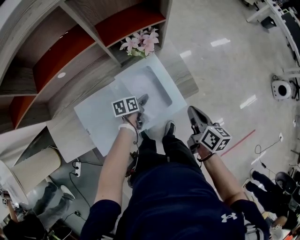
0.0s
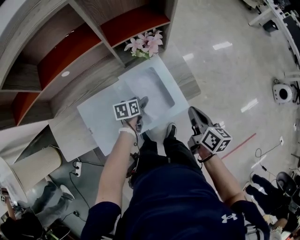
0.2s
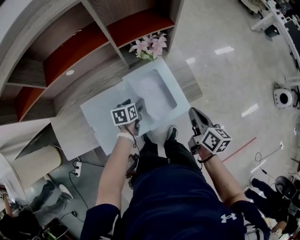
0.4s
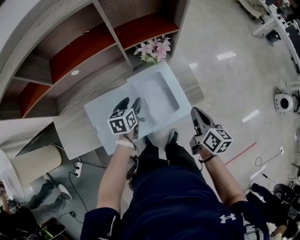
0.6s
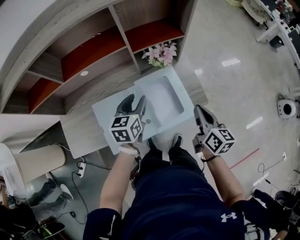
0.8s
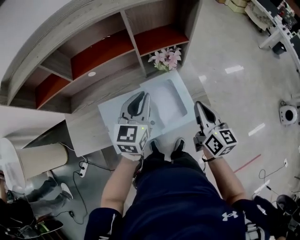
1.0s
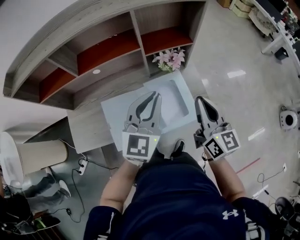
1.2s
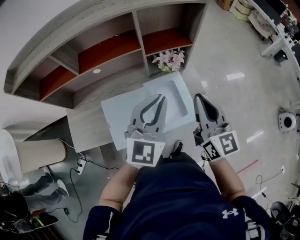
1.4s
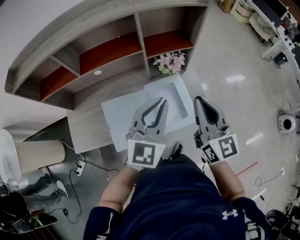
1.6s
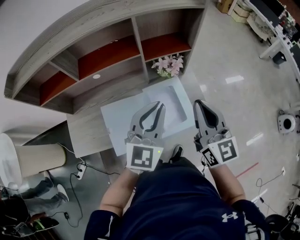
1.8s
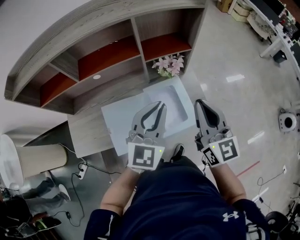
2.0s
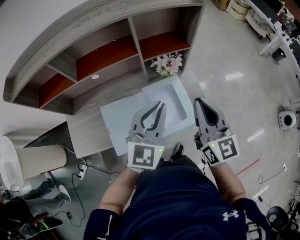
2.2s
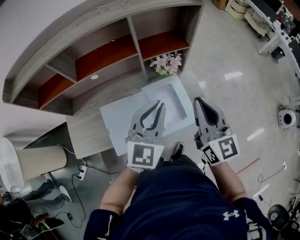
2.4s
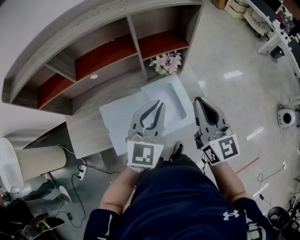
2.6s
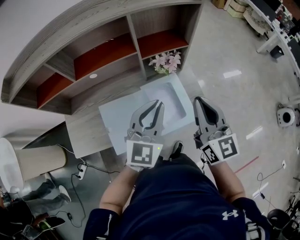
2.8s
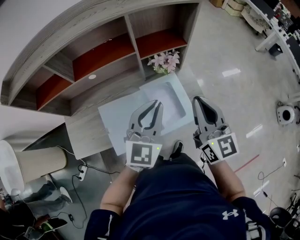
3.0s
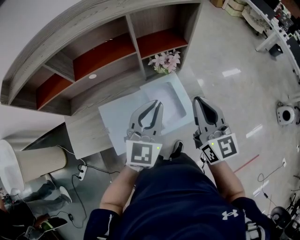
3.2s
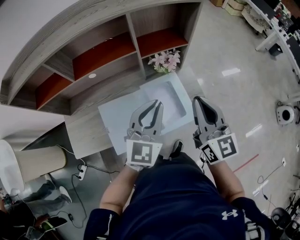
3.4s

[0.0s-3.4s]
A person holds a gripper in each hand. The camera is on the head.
0.0s to 1.6s: The right gripper travels upward and to the left by some 25 cm, and rotates approximately 50 degrees. Meanwhile the left gripper shifts roughly 40 cm upward, tips its fingers upward by roughly 40 degrees, and closes.
1.6s to 3.4s: There are only small adjustments of the grippers.

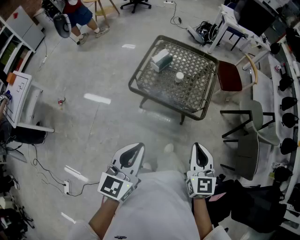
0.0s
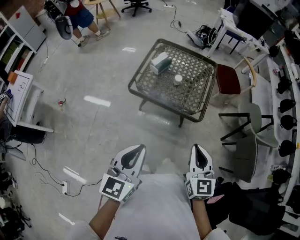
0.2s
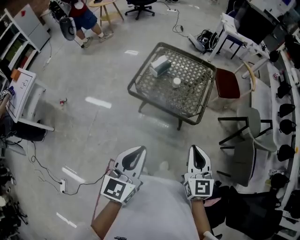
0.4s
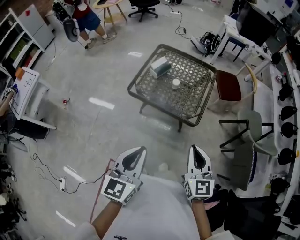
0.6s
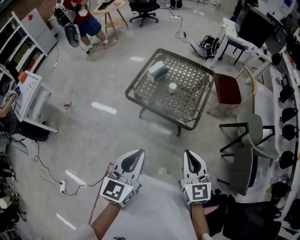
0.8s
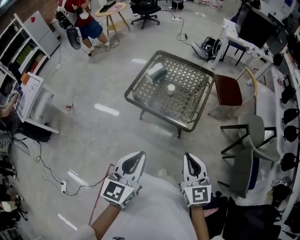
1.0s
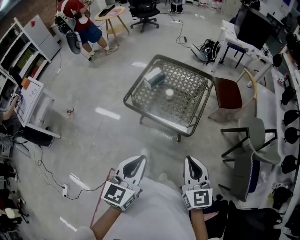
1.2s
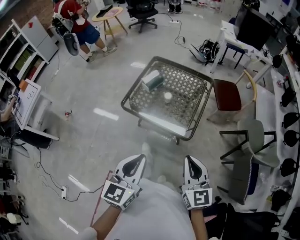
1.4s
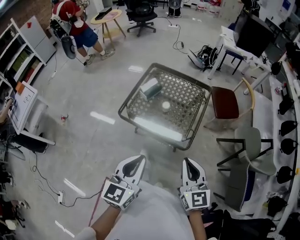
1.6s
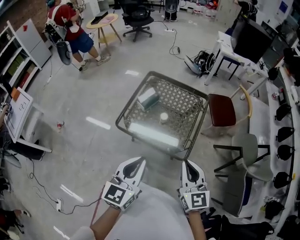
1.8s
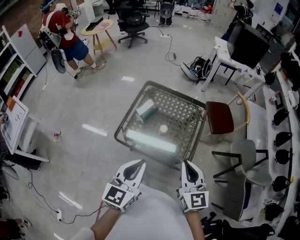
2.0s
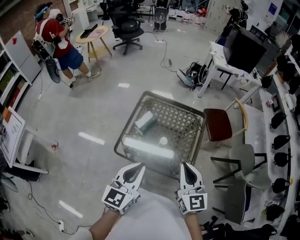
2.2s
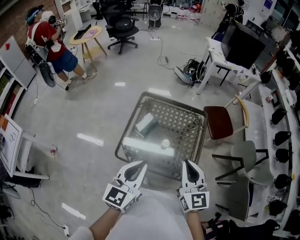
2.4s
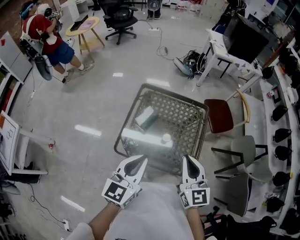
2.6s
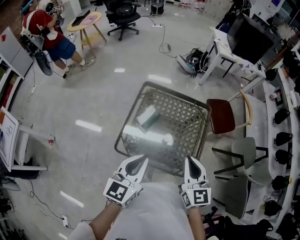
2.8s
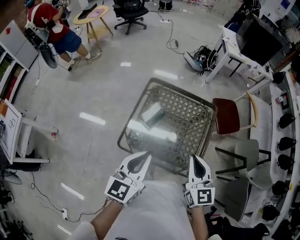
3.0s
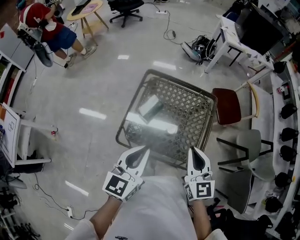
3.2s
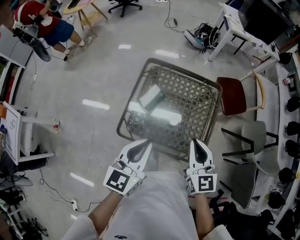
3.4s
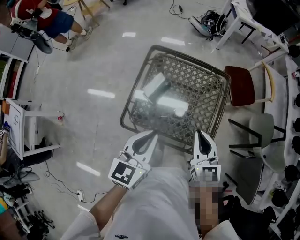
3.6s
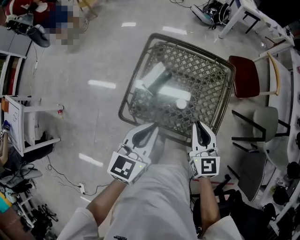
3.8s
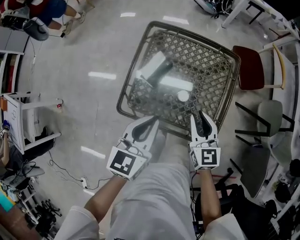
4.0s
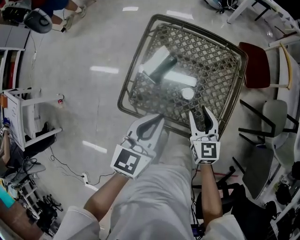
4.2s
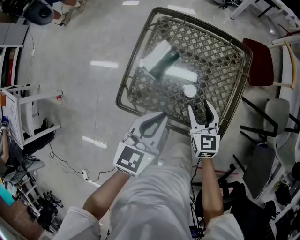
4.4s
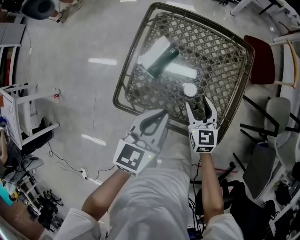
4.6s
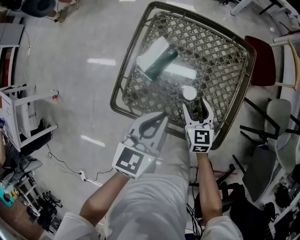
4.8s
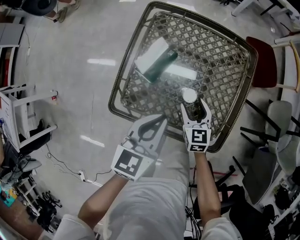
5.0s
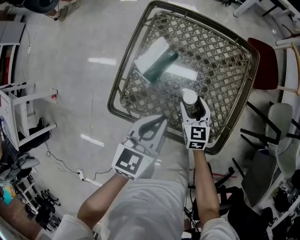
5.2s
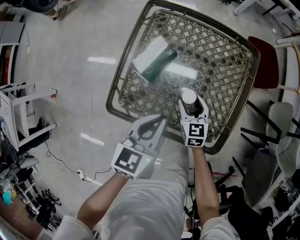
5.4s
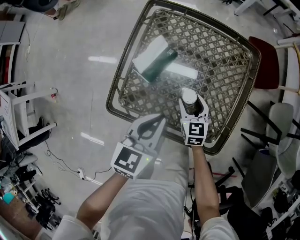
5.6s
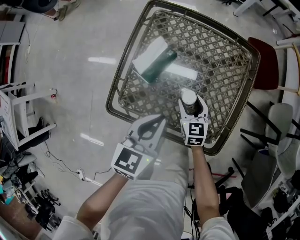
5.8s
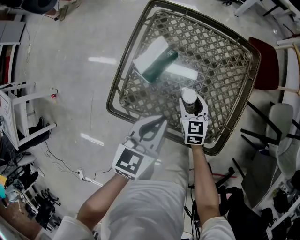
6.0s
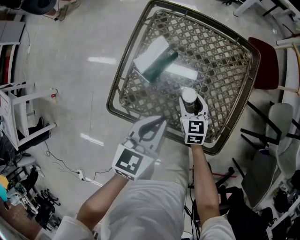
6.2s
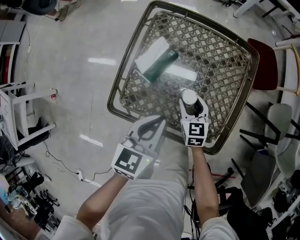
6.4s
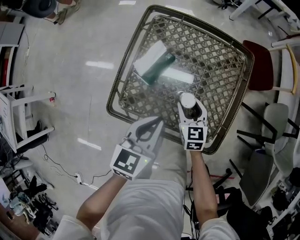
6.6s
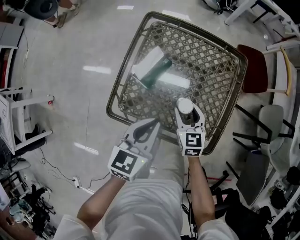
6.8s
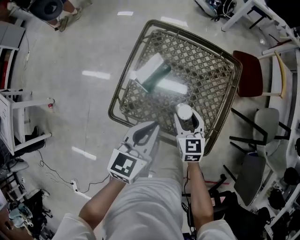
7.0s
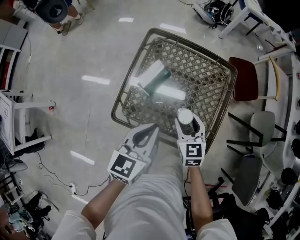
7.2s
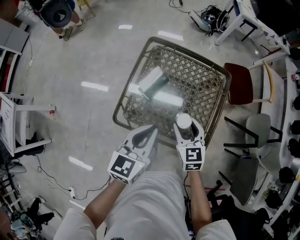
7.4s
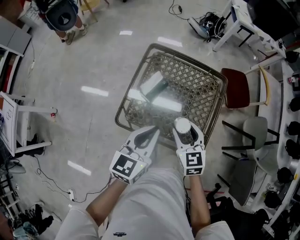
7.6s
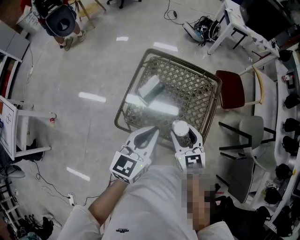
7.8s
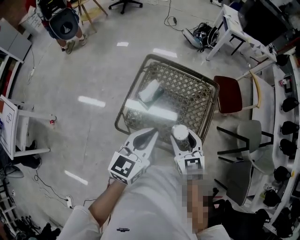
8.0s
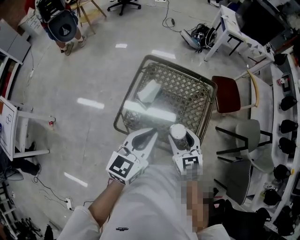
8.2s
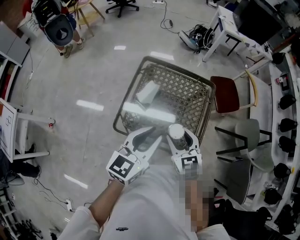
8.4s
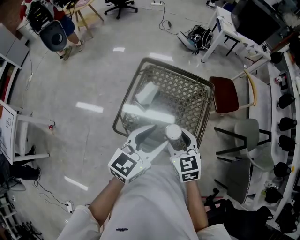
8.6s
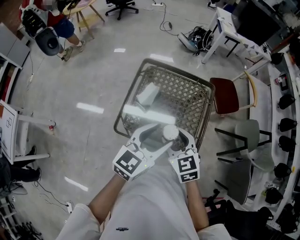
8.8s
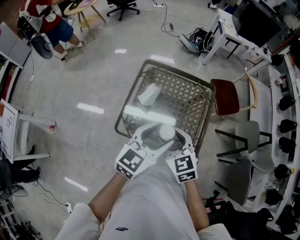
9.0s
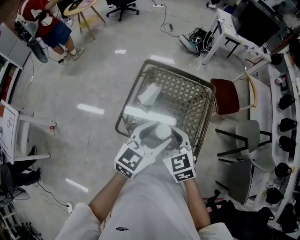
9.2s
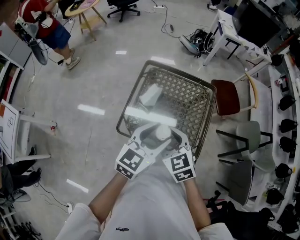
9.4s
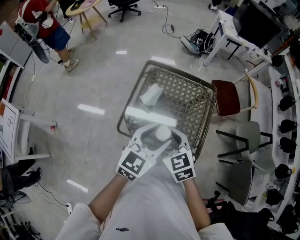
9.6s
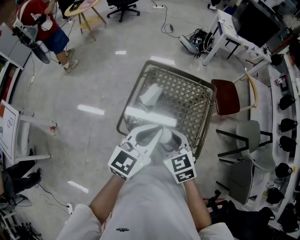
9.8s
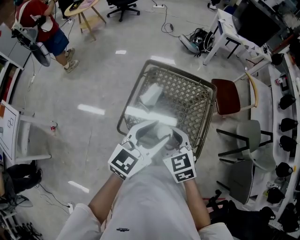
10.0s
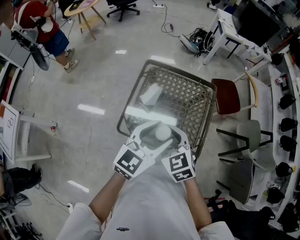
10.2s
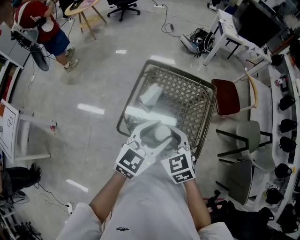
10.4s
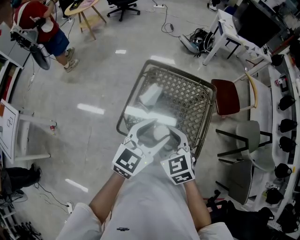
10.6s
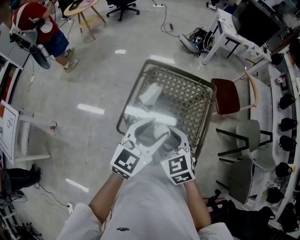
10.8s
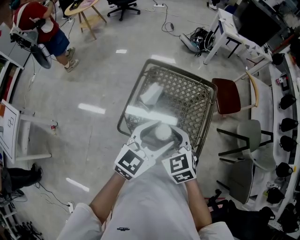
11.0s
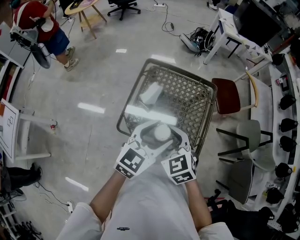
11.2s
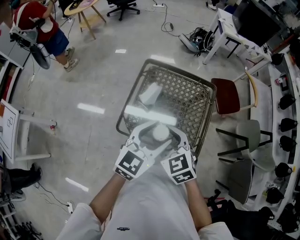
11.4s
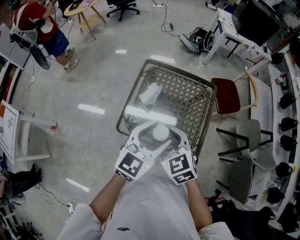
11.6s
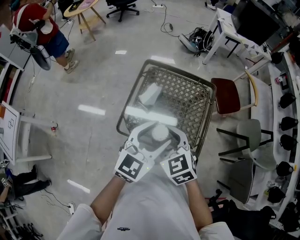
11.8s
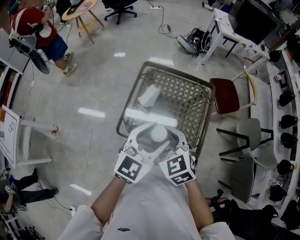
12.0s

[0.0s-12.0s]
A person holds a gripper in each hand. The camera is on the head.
0.0s to 1.6s: Both grippers travel together to the right and forward, some 15 cm.
1.6s to 3.0s: Both grippers move forward and to the left, about 30 cm.
3.0s to 4.4s: Both grippers travel together downward, some 25 cm. The right gripper opens.
4.4s to 6.0s: The right gripper heads downward, covering roughly 15 cm; the left gripper is displaced downward by about 10 cm.
6.0s to 7.6s: Both grippers move upward, approximately 20 cm.
7.6s to 9.0s: The right gripper is displaced upward and backward by about 10 cm. Meanwhile the left gripper heads upward, covering some 5 cm, and opens.
9.0s to 10.4s: The left gripper closes, then opens again.
10.4s to 12.0s: The grippers move only a little.

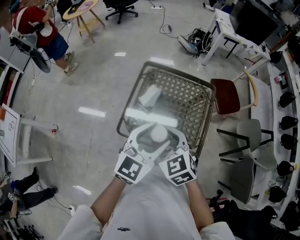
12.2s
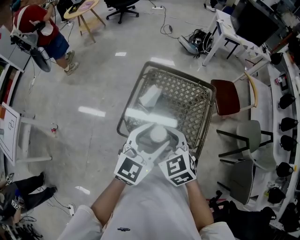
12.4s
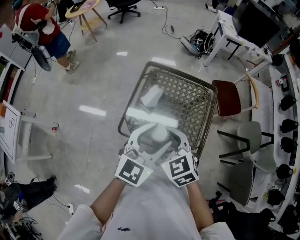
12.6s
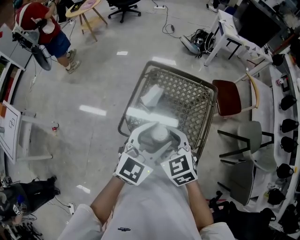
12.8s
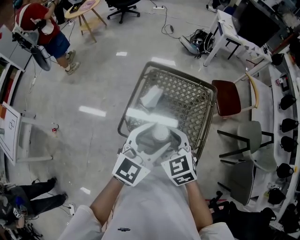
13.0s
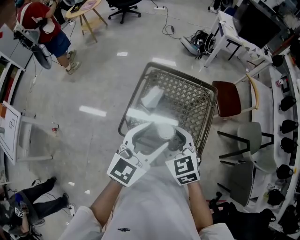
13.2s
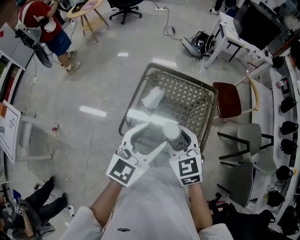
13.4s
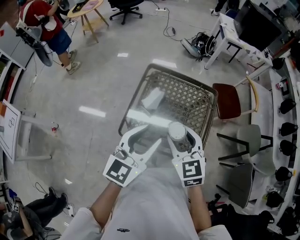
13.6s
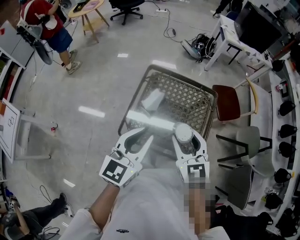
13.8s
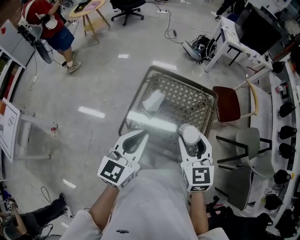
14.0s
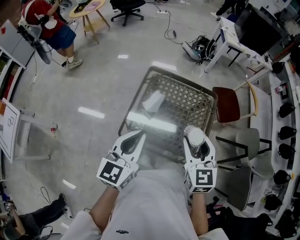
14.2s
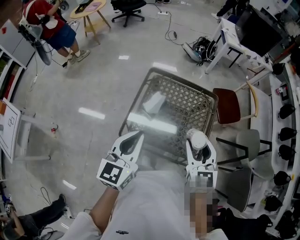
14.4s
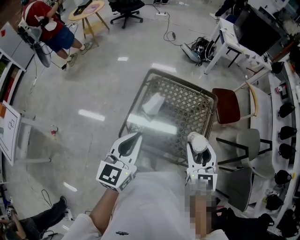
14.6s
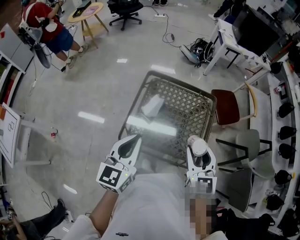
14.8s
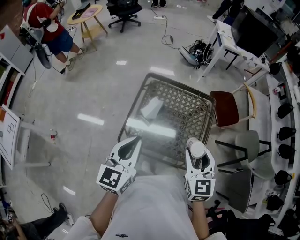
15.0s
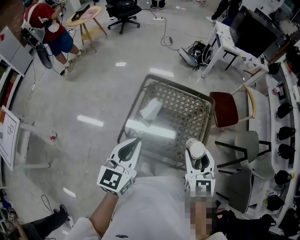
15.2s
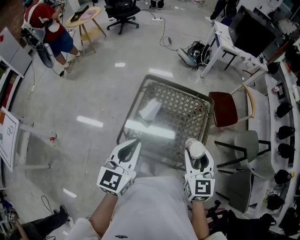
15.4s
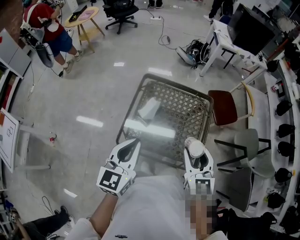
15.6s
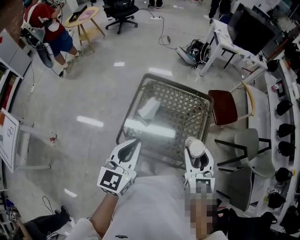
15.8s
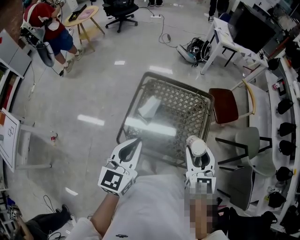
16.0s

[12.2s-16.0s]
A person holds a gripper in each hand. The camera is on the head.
12.2s to 13.4s: The grippers make only small movements.
13.4s to 14.8s: The right gripper heads to the right, covering roughly 10 cm, and turns by approximately 20 degrees. Meanwhile the left gripper shifts some 5 cm to the left, and closes up.
14.8s to 16.0s: There are only small adjustments of the grippers.

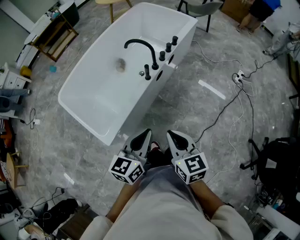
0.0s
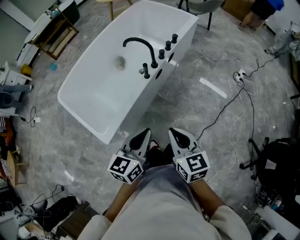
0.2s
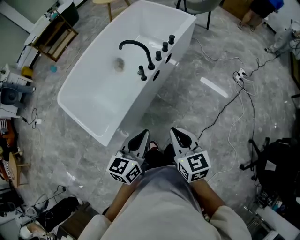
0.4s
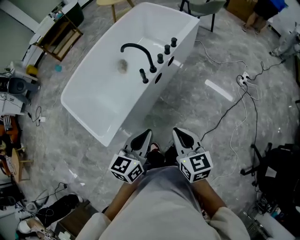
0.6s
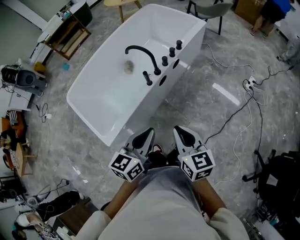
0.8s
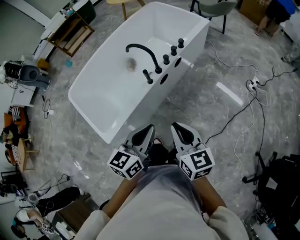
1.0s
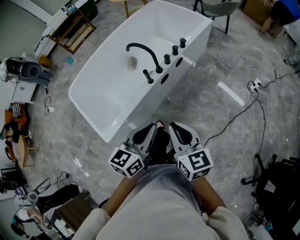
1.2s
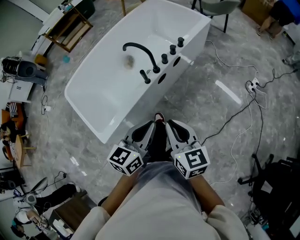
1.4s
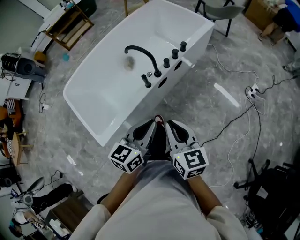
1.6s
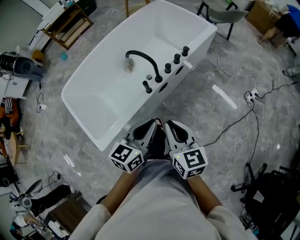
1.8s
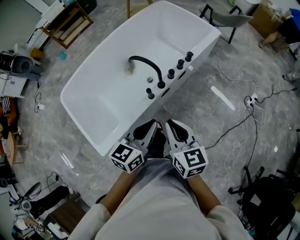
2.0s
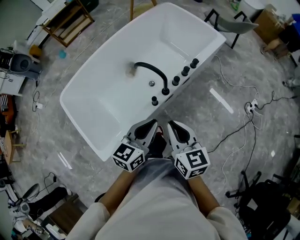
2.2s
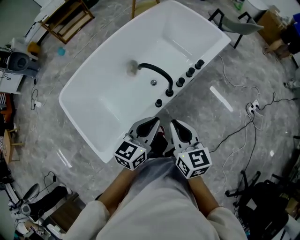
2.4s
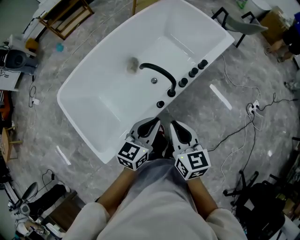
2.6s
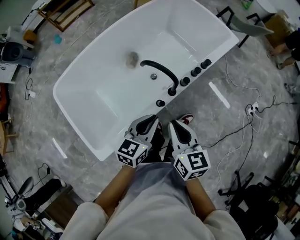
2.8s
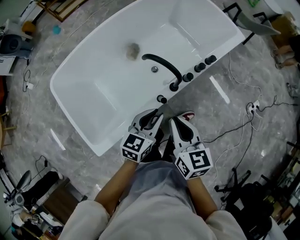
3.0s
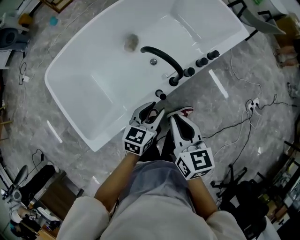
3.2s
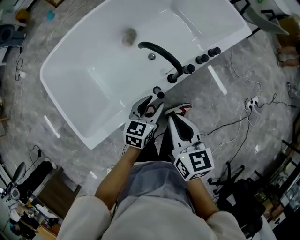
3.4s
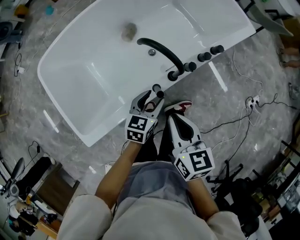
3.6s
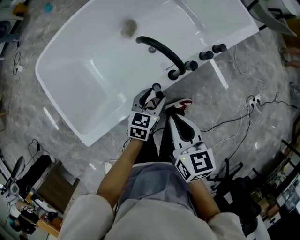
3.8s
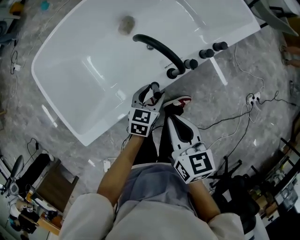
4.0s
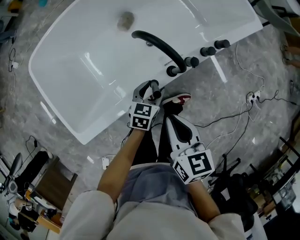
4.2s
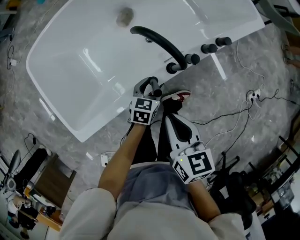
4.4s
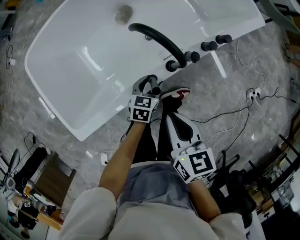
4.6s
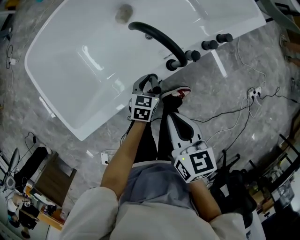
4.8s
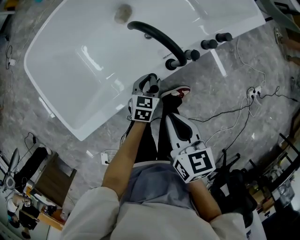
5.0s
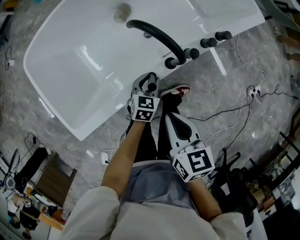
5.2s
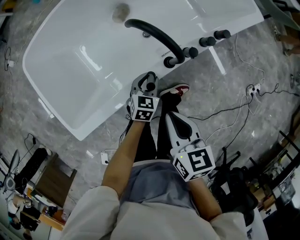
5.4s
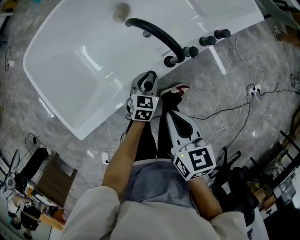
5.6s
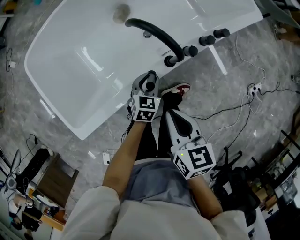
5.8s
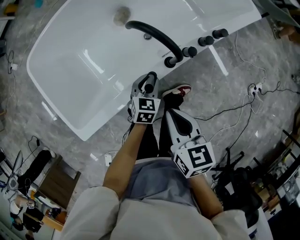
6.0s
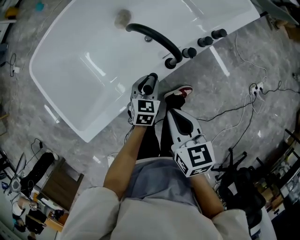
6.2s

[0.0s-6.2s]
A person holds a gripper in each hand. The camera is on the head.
0.0s to 1.6s: The two grippers go approximately 20 cm forward and to the right.
1.6s to 3.2s: The left gripper moves forward, downward and to the left, some 30 cm, and opens its fingers. The right gripper moves forward, to the left and downward, about 25 cm.
3.2s to 4.6s: The left gripper heads downward, covering some 20 cm, and opens up. The right gripper moves downward, some 10 cm.
4.6s to 6.2s: The left gripper closes.
